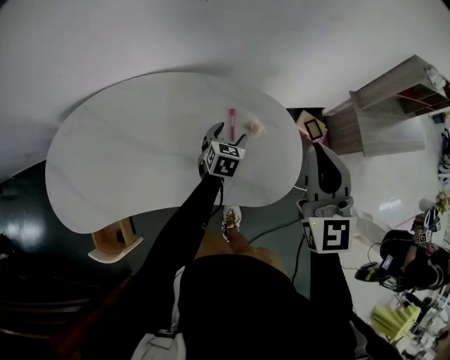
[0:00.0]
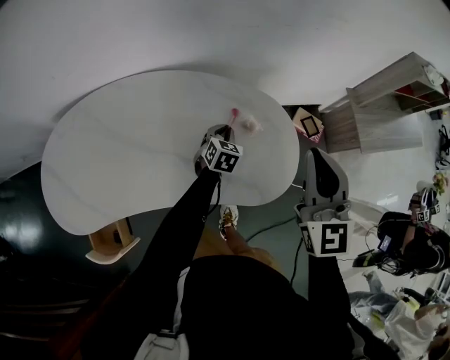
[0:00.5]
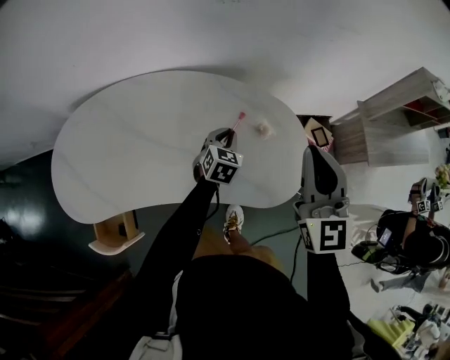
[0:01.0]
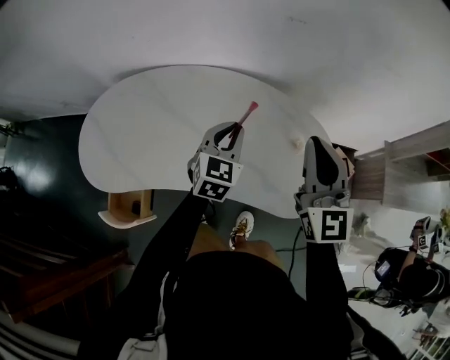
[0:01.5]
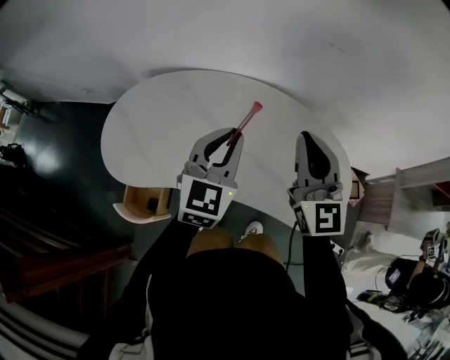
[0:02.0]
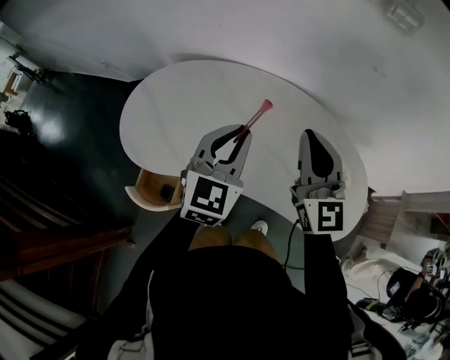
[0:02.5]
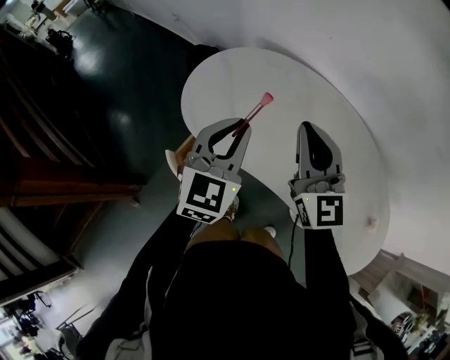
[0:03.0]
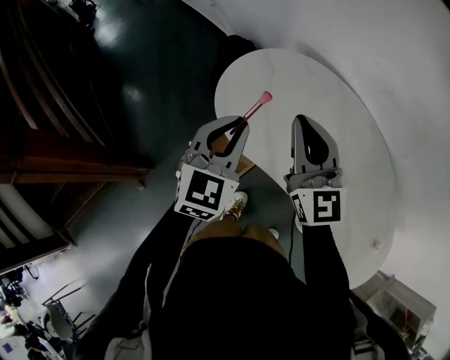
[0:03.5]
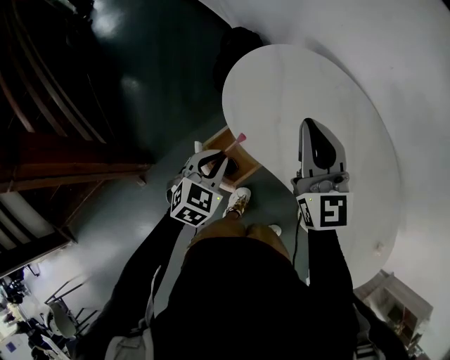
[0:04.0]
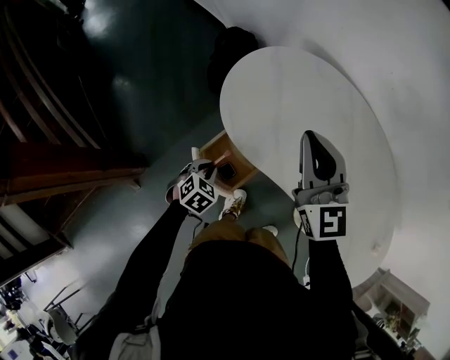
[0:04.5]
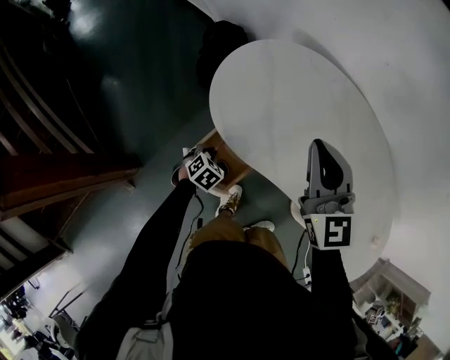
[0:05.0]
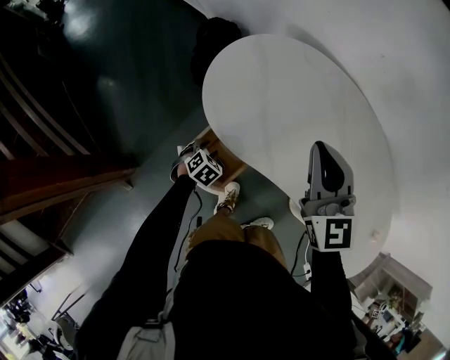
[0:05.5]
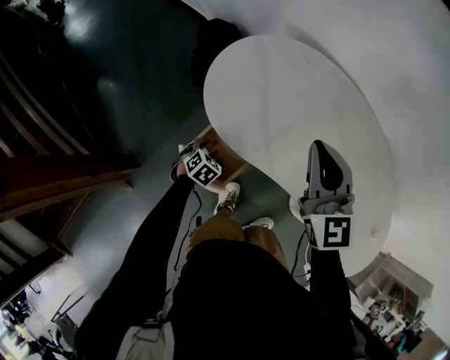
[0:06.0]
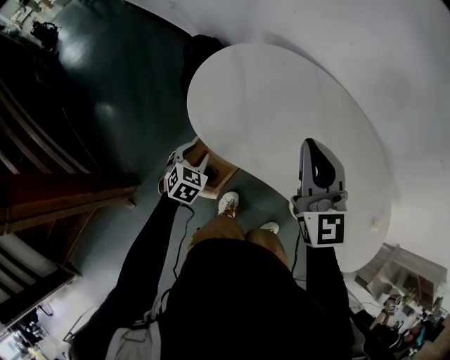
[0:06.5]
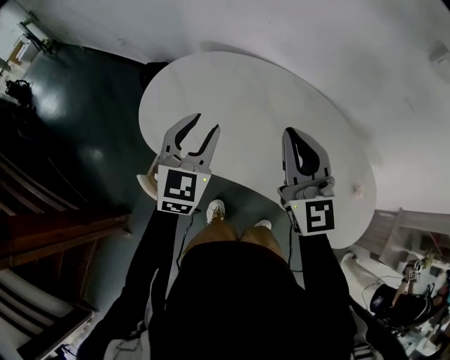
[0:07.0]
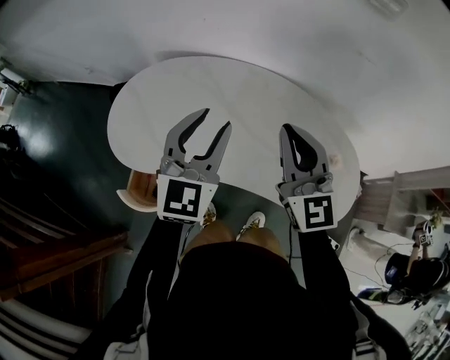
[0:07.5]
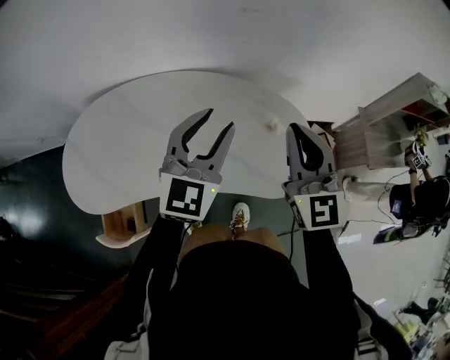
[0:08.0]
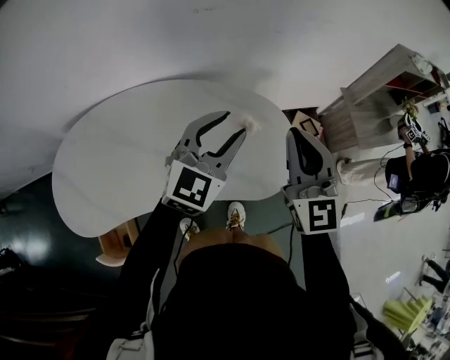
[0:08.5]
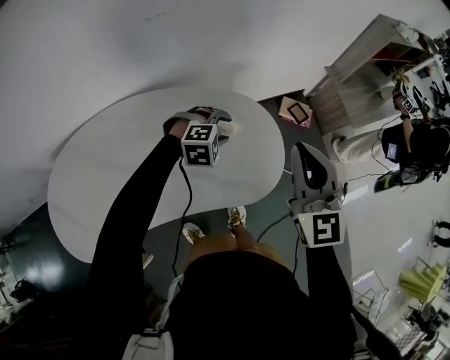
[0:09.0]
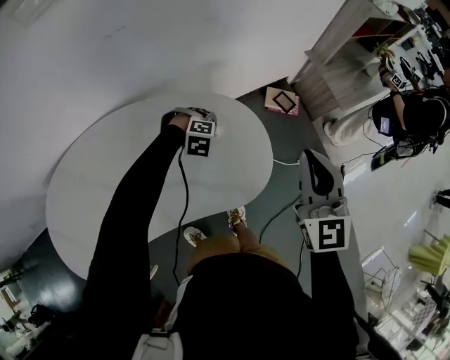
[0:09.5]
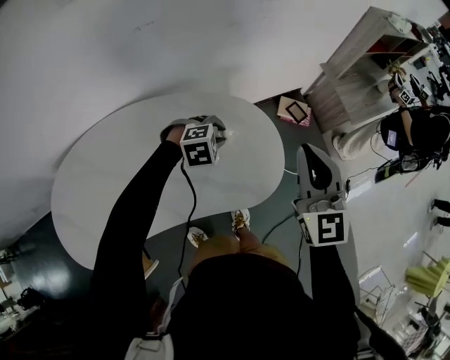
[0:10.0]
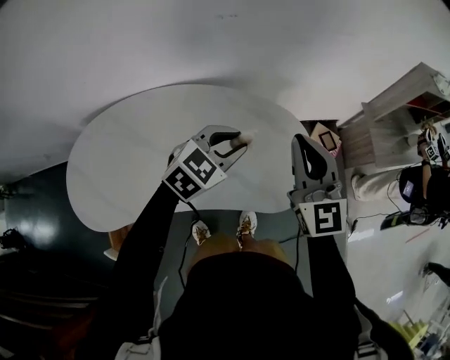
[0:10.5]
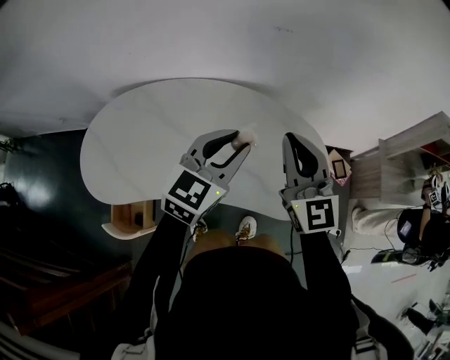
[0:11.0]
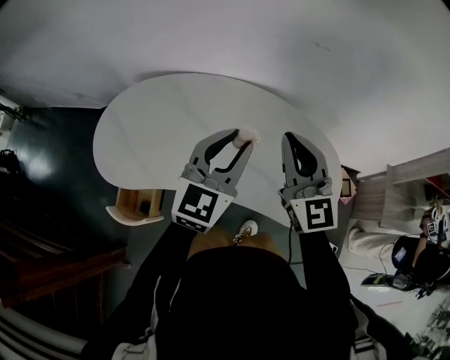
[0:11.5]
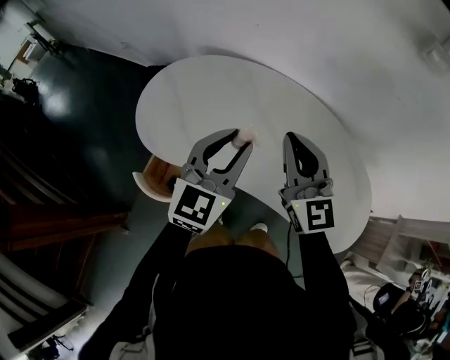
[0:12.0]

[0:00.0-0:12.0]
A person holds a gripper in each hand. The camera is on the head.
0:00.0 to 0:02.0: The right gripper heads to the left, covering approximately 20 cm, and rotates approximately 30 degrees; the left gripper moves upward and to the left, roughly 40 cm, changes its angle by approximately 30 degrees, and closes up.
0:02.0 to 0:04.0: The pair of grippers is taken some 50 cm. The right gripper rotates some 40 degrees. The left gripper turns by approximately 40 degrees.
0:04.0 to 0:06.0: The left gripper travels downward by roughly 20 cm, rotates approximately 20 degrees, and opens; the right gripper shifts by some 5 cm.
0:06.0 to 0:08.0: The two grippers travel together, approximately 60 cm. The left gripper tilts its fingers some 60 degrees upward; the right gripper turns by roughly 50 degrees.
0:08.0 to 0:10.0: The right gripper changes place by approximately 20 cm, and turns by approximately 20 degrees, while the left gripper shifts roughly 25 cm downward, and tips its fingers downward by about 60 degrees.
0:10.0 to 0:12.0: Both grippers are carried roughly 40 cm. The left gripper tips its fingers upward by roughly 60 degrees. Meanwhile the right gripper turns by roughly 60 degrees.

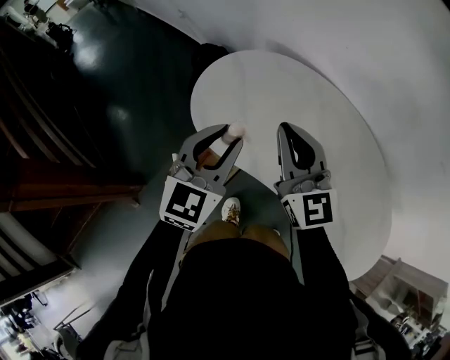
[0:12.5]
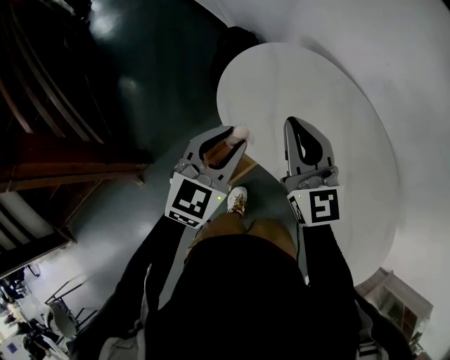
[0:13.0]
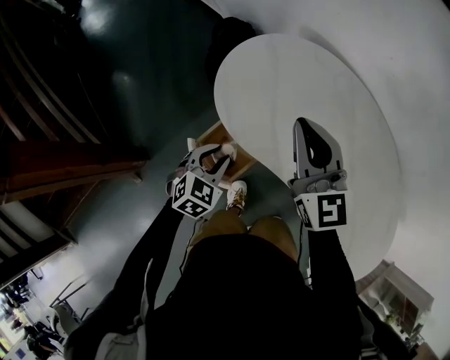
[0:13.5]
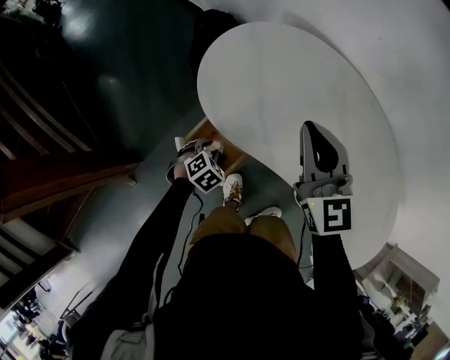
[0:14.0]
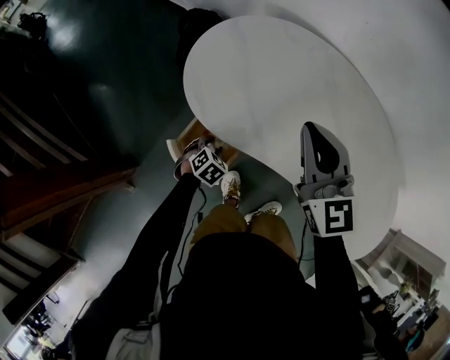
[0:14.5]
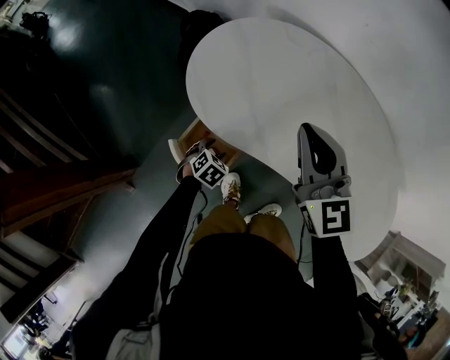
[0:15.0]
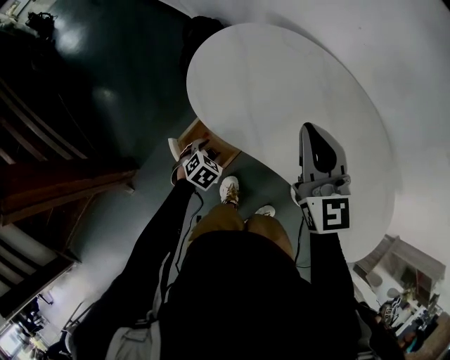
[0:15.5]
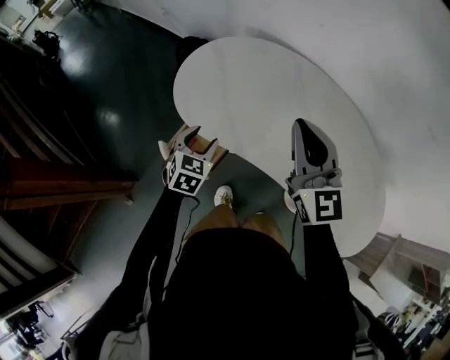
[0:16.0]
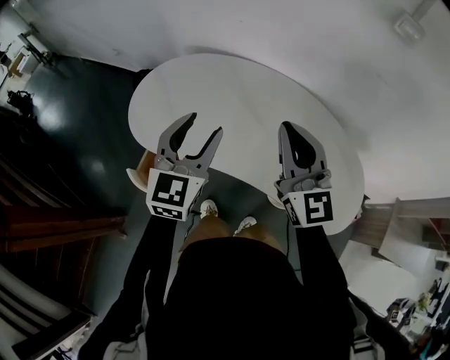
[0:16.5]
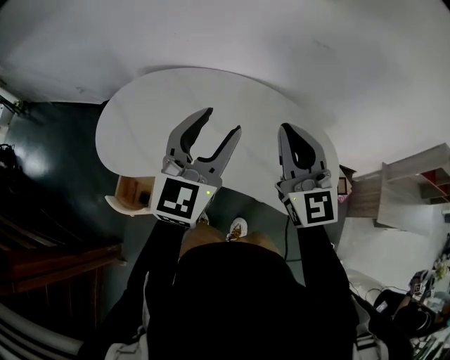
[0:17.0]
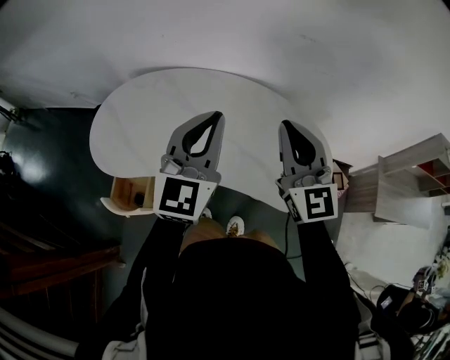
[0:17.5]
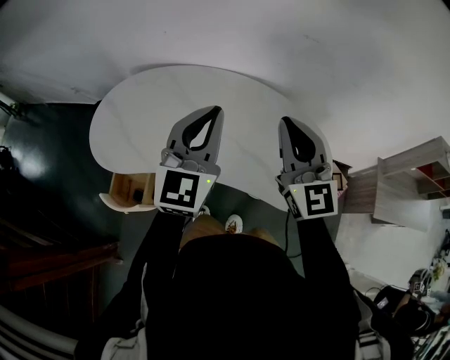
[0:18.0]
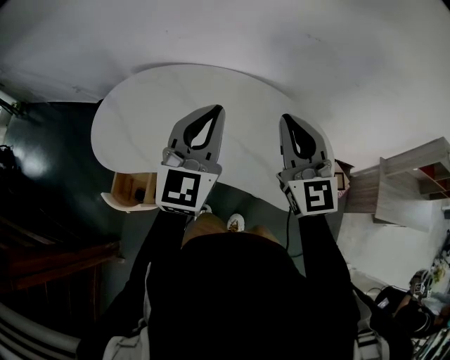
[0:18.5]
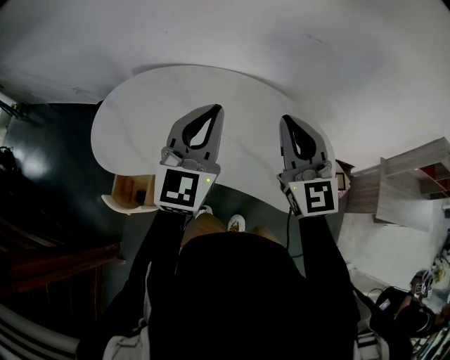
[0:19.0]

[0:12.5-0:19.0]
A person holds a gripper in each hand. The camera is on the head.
0:12.5 to 0:14.5: The right gripper travels downward by roughly 5 cm, and reaches roughly 10 cm to the left, then returns; the left gripper moves downward, roughly 40 cm, and angles its fingers downward, by approximately 50 degrees.
0:14.5 to 0:17.0: Both grippers are carried approximately 40 cm. The right gripper changes its angle by approximately 30 degrees; the left gripper heads upward, covering approximately 50 cm, and angles its fingers upward, by approximately 70 degrees.
0:17.0 to 0:19.0: The left gripper closes.

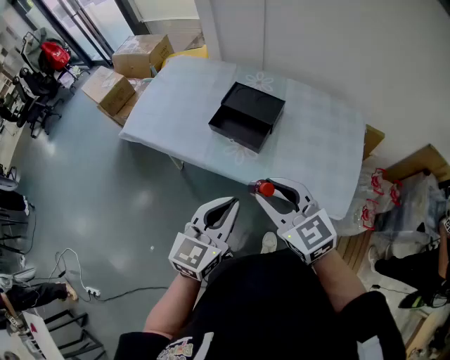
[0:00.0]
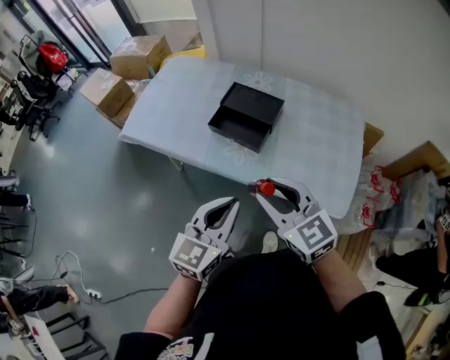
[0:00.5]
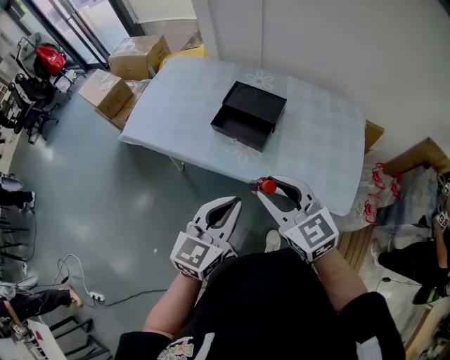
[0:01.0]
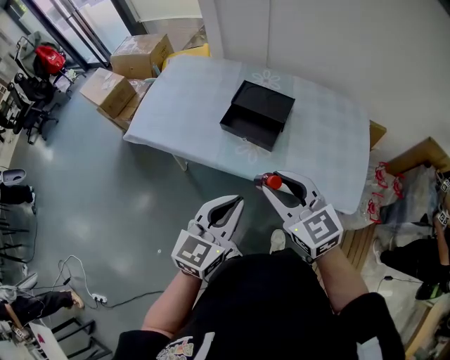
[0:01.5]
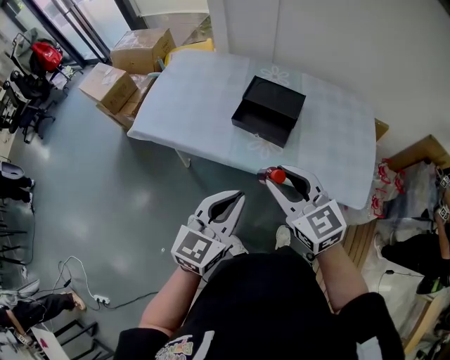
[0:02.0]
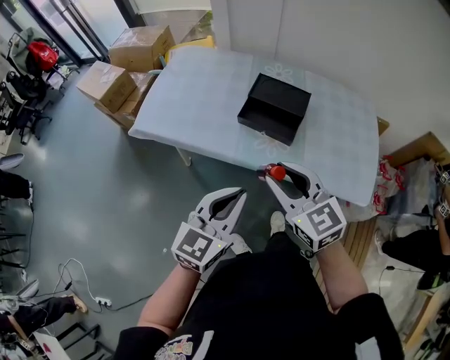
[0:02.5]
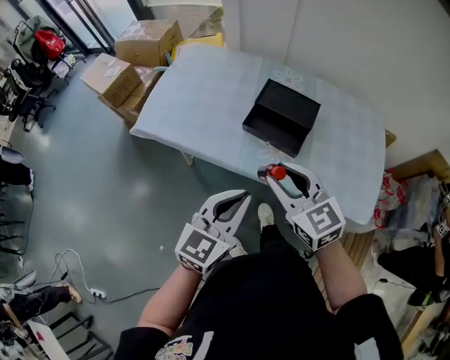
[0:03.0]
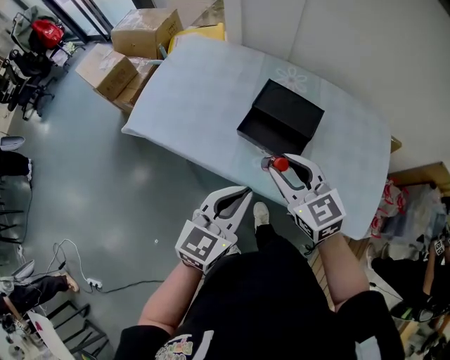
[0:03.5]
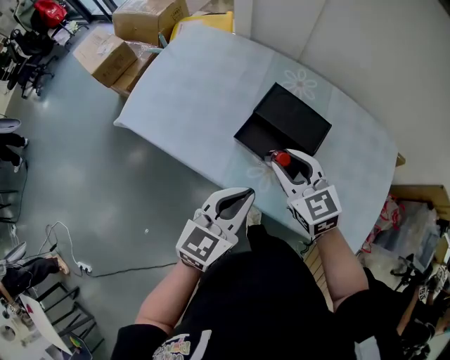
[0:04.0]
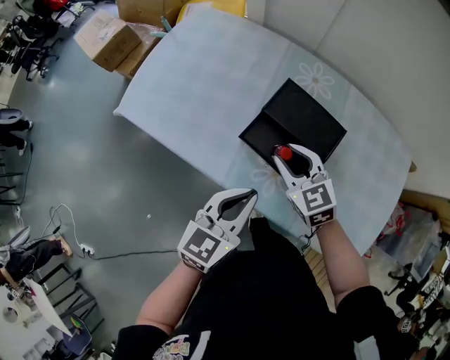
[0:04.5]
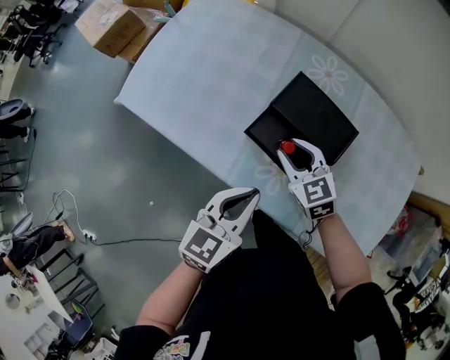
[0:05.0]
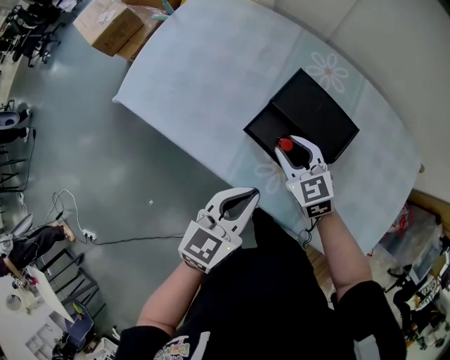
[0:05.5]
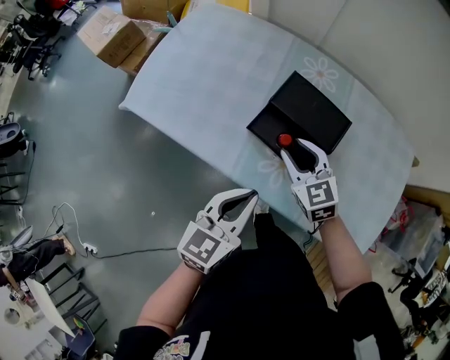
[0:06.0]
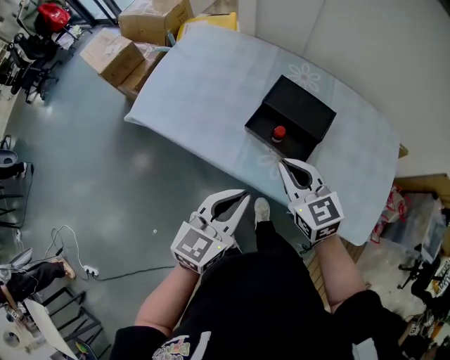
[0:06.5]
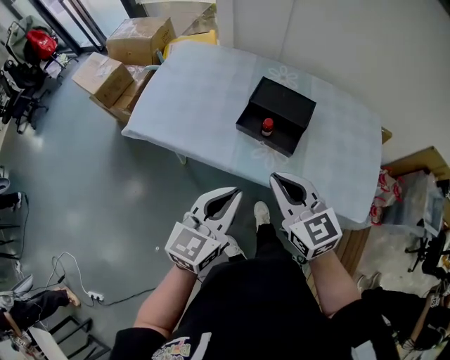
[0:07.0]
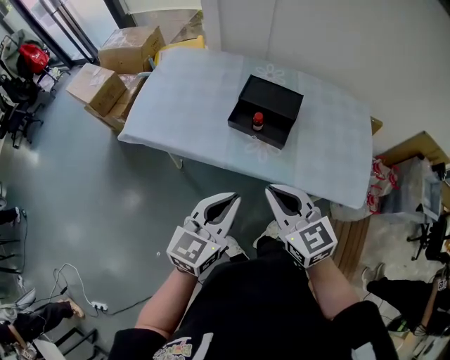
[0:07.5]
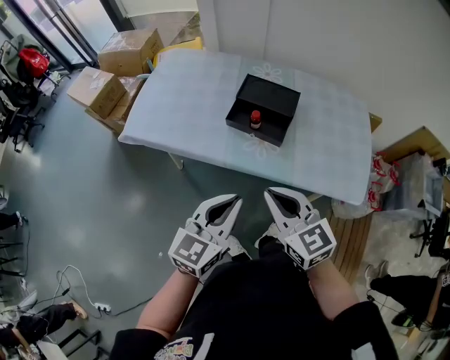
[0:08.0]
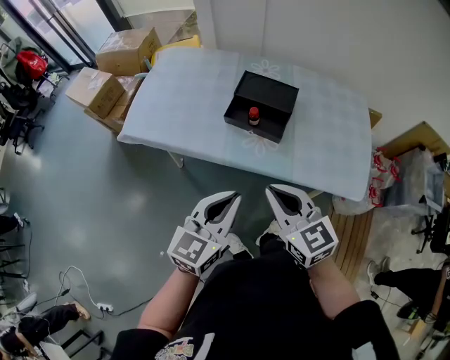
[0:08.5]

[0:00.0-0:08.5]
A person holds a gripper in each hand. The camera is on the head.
0:00.0 to 0:02.0: Both grippers travel together to the left, about 10 cm.
0:02.0 to 0:04.0: Both grippers move forward, some 20 cm.
0:04.0 to 0:06.5: The left gripper travels backward and to the left by about 10 cm; the right gripper goes some 5 cm backward, reaches about 15 cm downward, then returns, and closes its fingers.
0:06.5 to 0:08.5: The right gripper is displaced backward by some 20 cm; the left gripper heads backward, covering about 10 cm.
